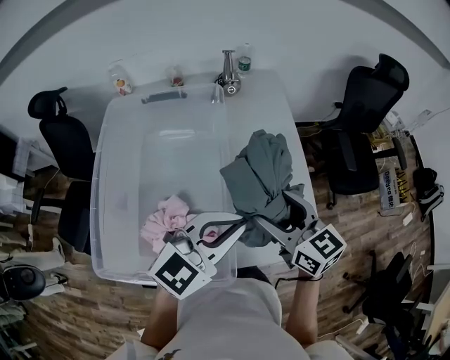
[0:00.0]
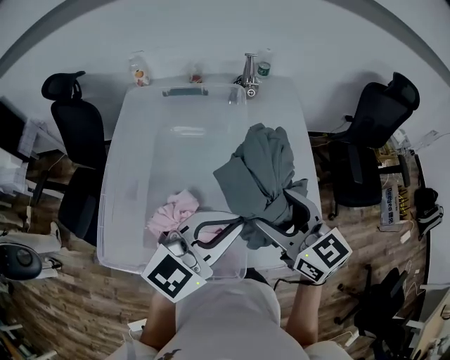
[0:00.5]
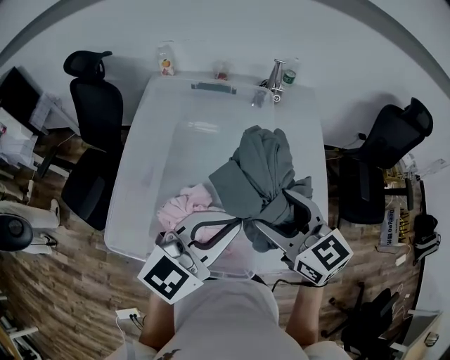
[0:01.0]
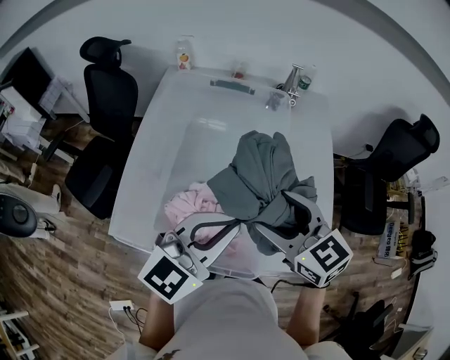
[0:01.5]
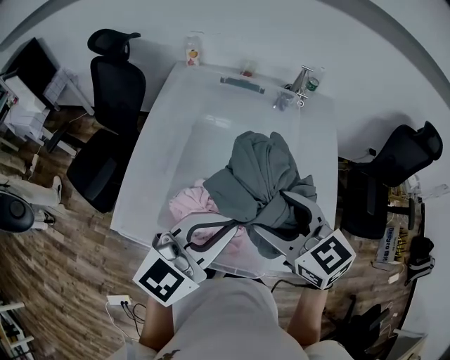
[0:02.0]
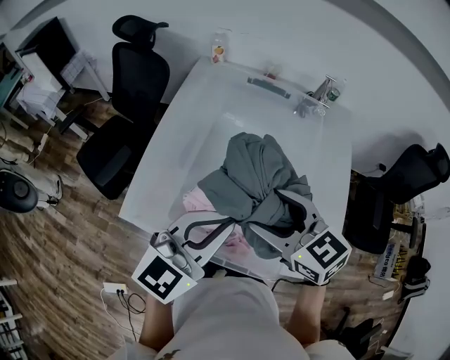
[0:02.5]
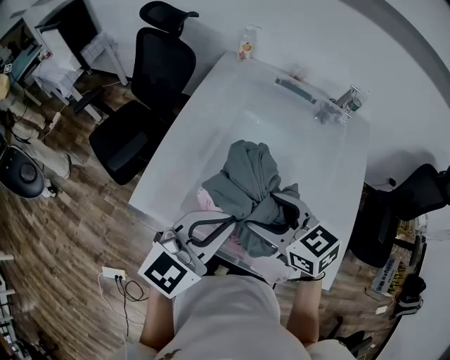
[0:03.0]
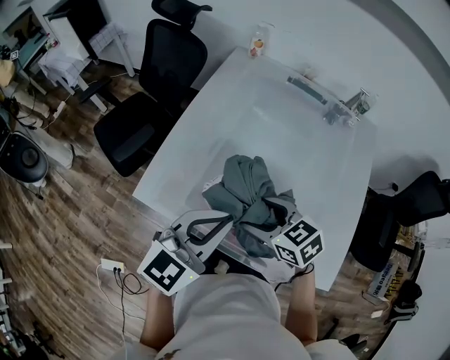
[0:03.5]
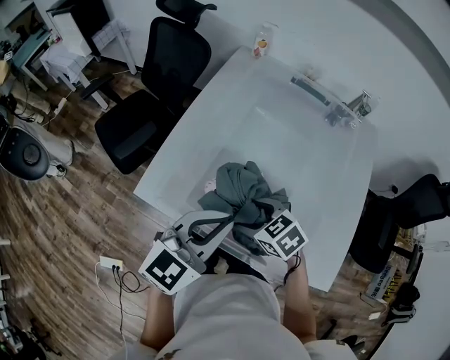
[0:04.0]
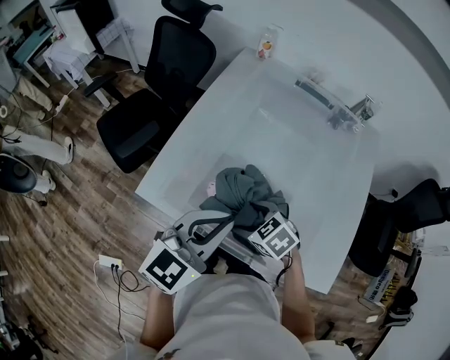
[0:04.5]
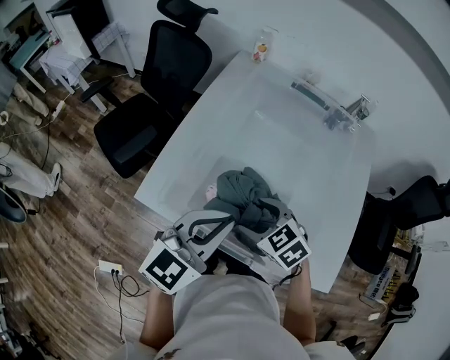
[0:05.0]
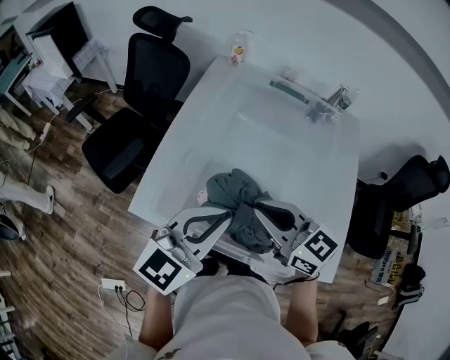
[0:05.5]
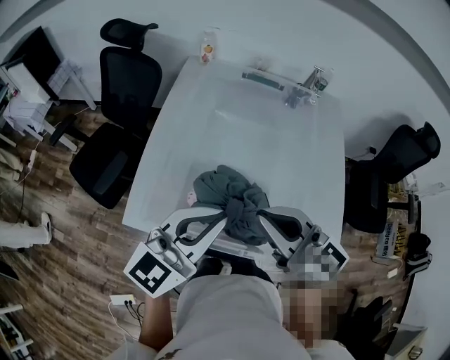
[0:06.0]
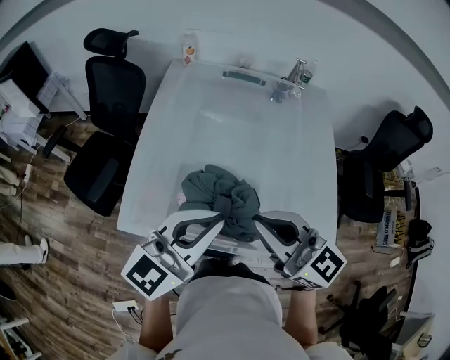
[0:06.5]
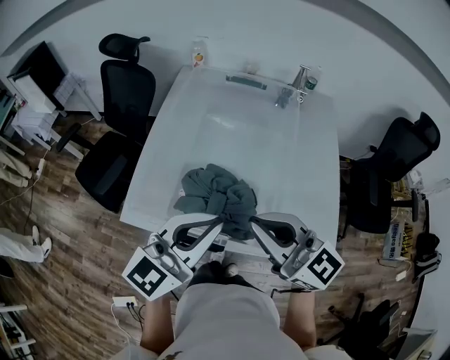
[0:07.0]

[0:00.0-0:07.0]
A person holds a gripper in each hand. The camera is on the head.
0:00.0 to 0:02.0: The grippers both shift to the left by approximately 15 cm. The right gripper turns by about 30 degrees. The left gripper turns by some 20 degrees.
0:02.0 to 0:03.5: The right gripper goes some 20 cm downward and to the left, and swivels some 30 degrees. Meanwhile the left gripper is displaced to the left and downward by roughly 15 cm.
0:03.5 to 0:05.0: The right gripper moves some 10 cm downward and comes back.
0:05.0 to 0:07.0: The left gripper travels to the right, upward and backward by about 10 cm. Meanwhile the right gripper shifts roughly 25 cm upward, to the right and backward, angles its fingers upward, by roughly 50 degrees, and closes.

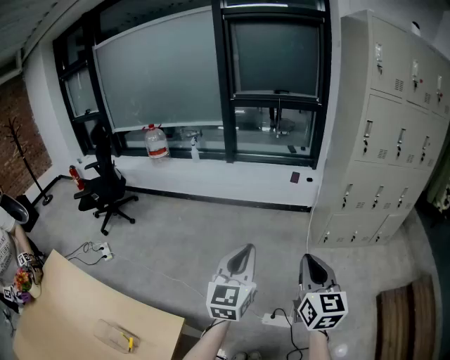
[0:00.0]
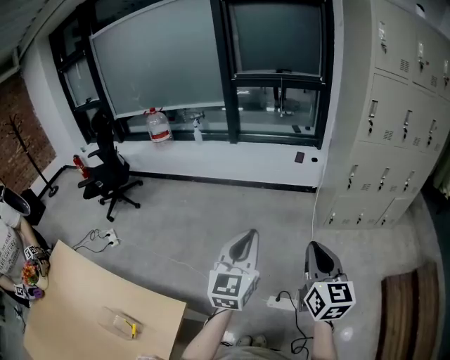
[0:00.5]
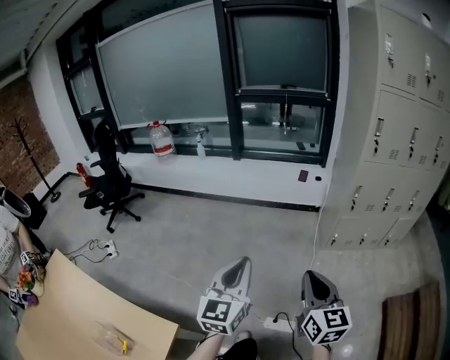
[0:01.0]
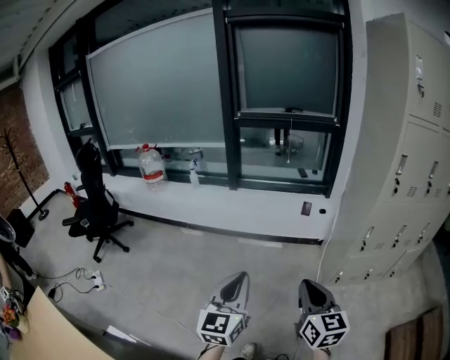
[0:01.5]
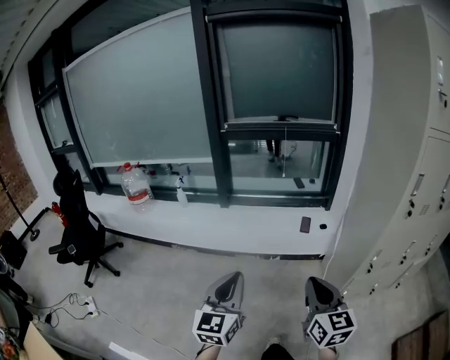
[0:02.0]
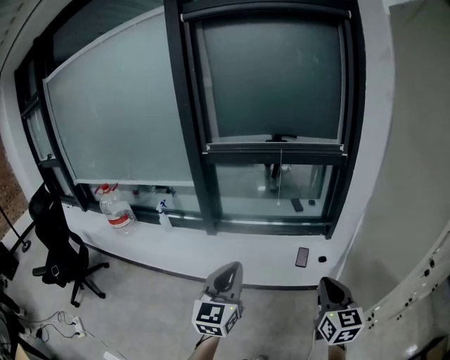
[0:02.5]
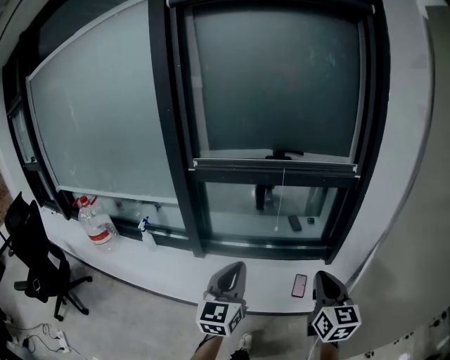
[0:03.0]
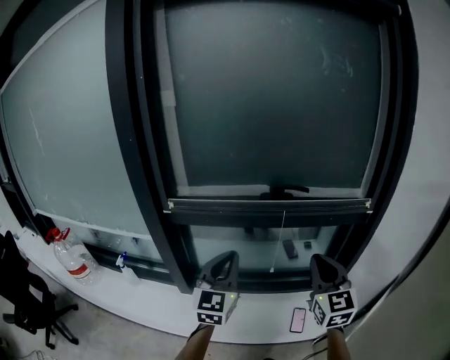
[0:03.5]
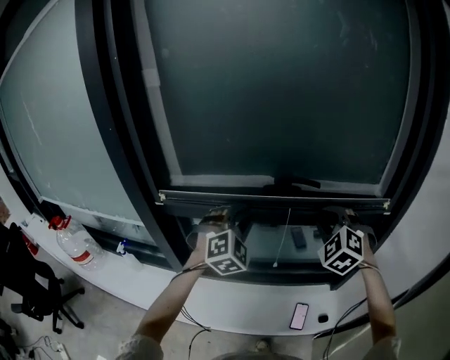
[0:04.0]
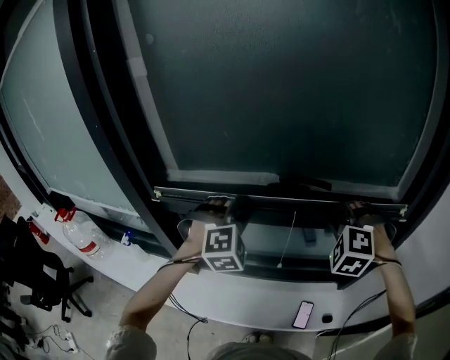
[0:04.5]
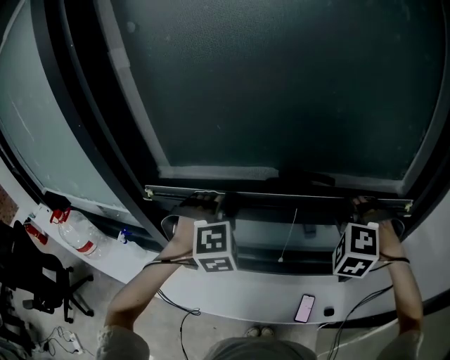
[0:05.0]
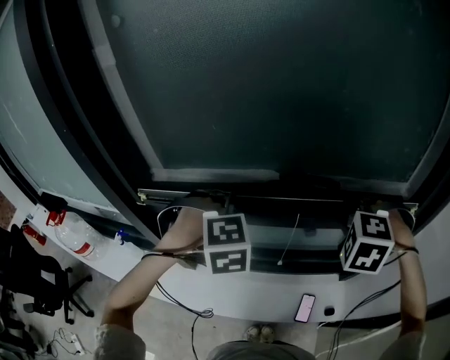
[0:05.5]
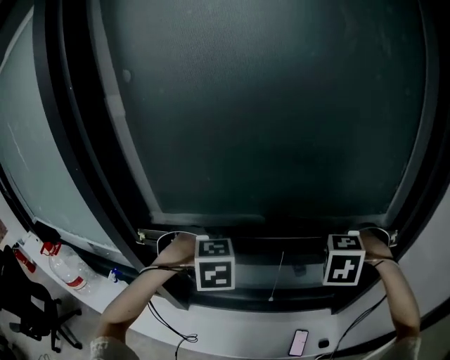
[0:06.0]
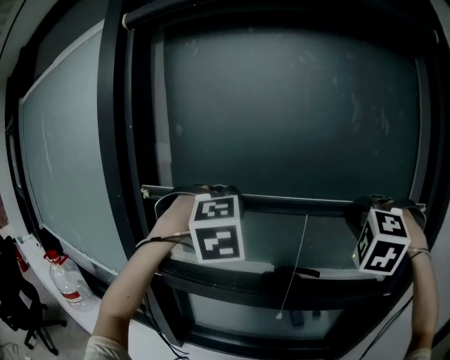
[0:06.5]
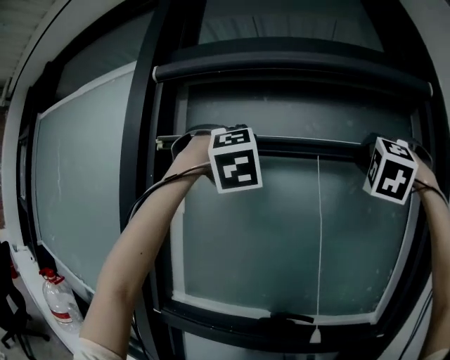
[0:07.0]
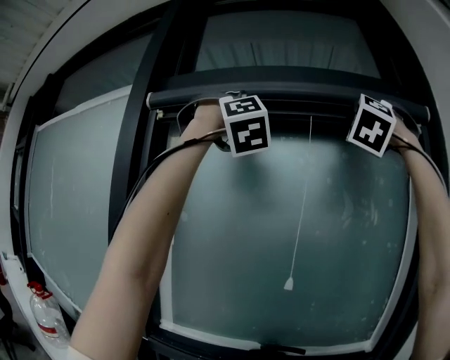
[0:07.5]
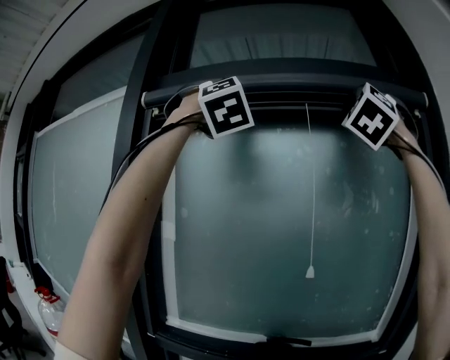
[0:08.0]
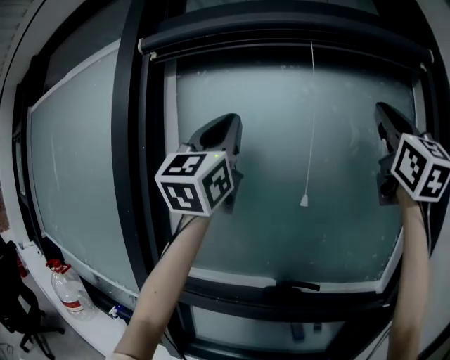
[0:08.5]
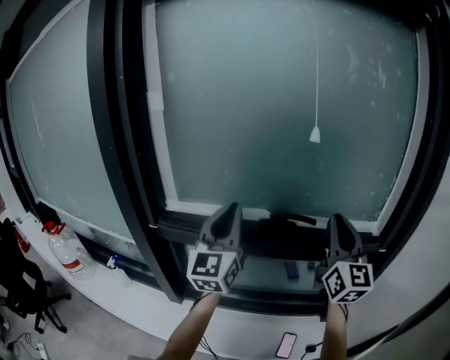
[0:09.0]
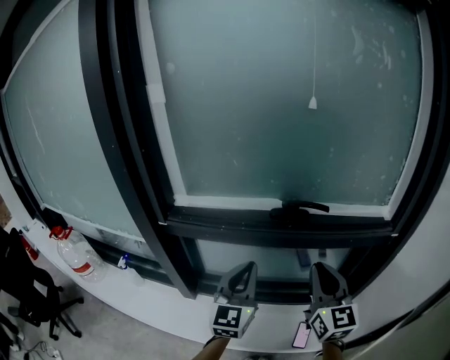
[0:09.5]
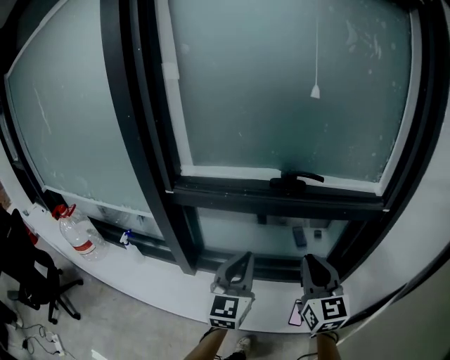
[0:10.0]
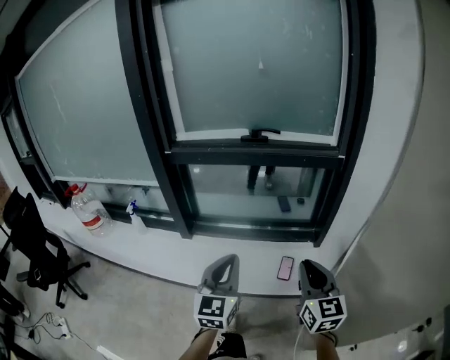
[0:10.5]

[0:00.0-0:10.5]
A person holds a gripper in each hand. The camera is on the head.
0:00.0 to 0:02.0: The pair of grippers is taken forward, approximately 40 cm.
0:02.0 to 0:04.0: The pair of grippers is taken forward, some 90 cm. The left gripper twists about 60 degrees clockwise, seen from behind, while the right gripper rotates around the line of its fingers by roughly 60 degrees, counterclockwise from behind.
0:04.0 to 0:06.5: The two grippers go approximately 25 cm upward. The right gripper turns by approximately 20 degrees, while the left gripper changes its angle by approximately 20 degrees.
0:06.5 to 0:08.5: The grippers both shift upward by some 30 cm. The right gripper tilts its fingers roughly 70 degrees upward, while the left gripper tilts its fingers about 70 degrees upward.
0:08.5 to 0:10.5: Both grippers move downward and backward, about 70 cm. The left gripper tilts its fingers roughly 40 degrees downward. The right gripper angles its fingers downward, by approximately 40 degrees.

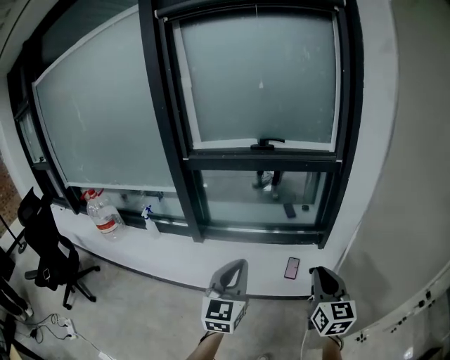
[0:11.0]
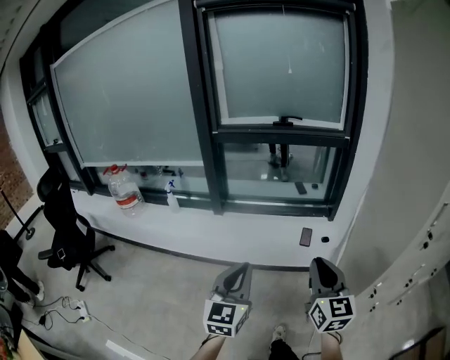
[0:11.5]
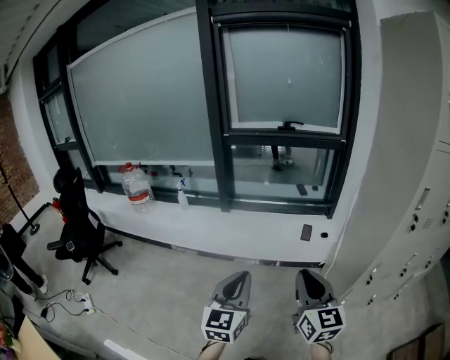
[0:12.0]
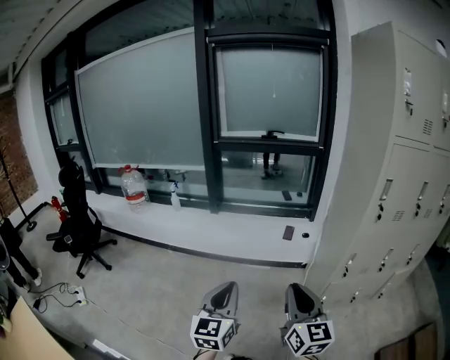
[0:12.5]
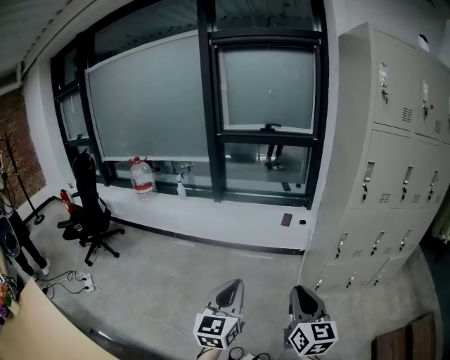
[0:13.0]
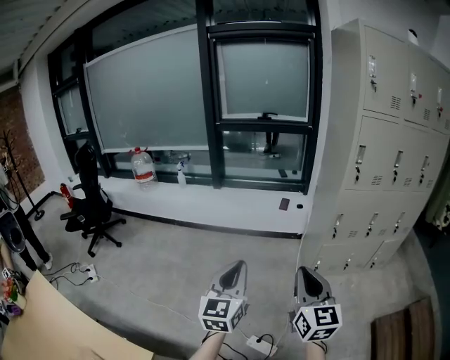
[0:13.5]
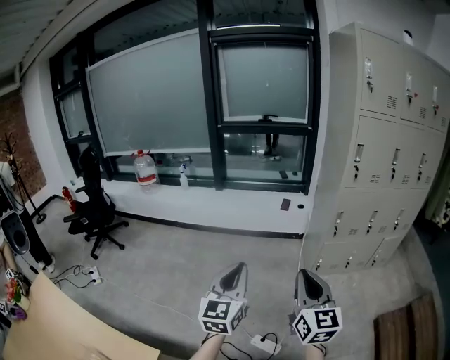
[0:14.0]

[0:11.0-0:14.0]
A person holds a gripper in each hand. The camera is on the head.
0:11.0 to 0:12.5: The two grippers travel together, backward, roughly 50 cm.
0:12.5 to 0:14.0: The grippers both shift backward by roughly 25 cm.

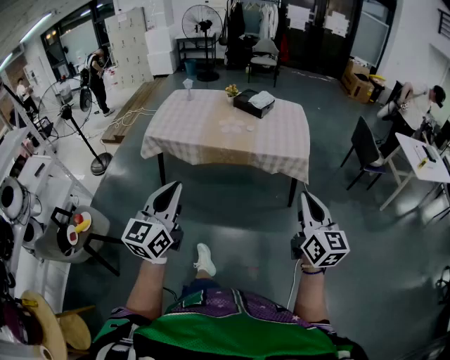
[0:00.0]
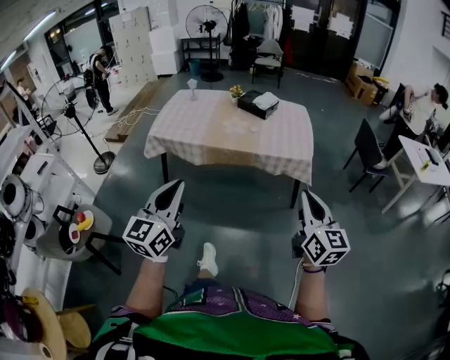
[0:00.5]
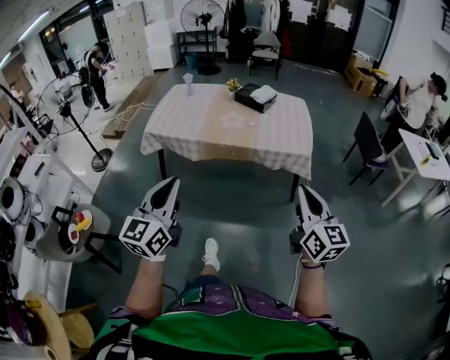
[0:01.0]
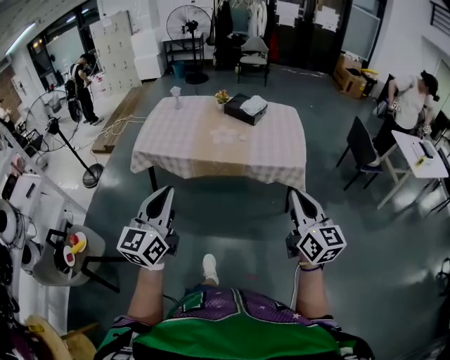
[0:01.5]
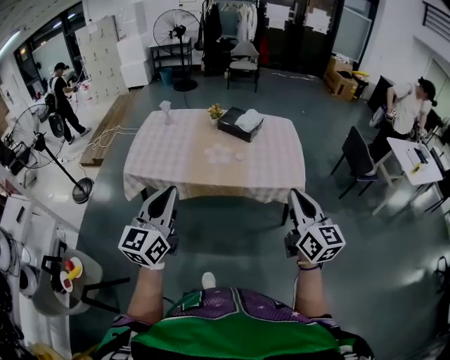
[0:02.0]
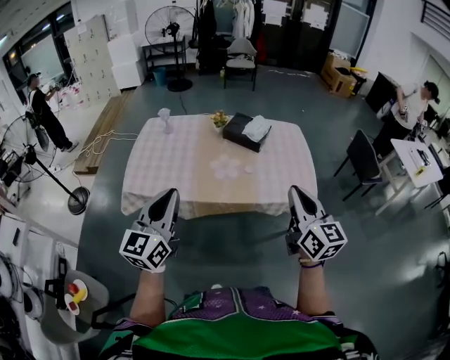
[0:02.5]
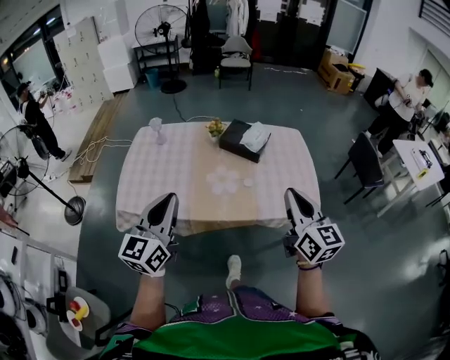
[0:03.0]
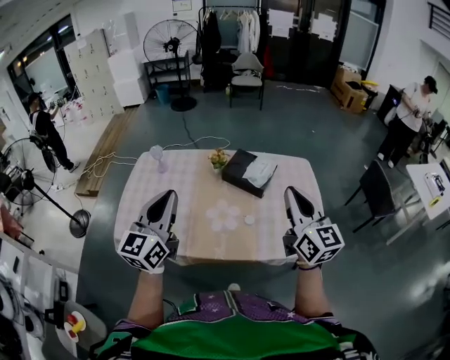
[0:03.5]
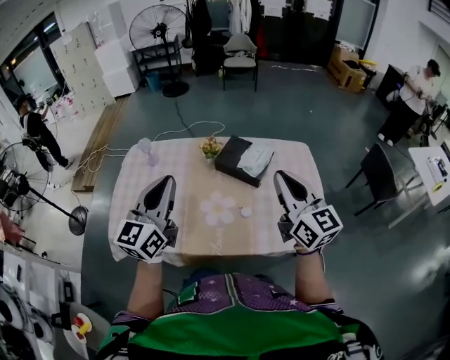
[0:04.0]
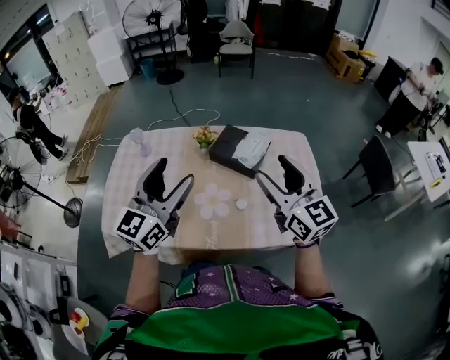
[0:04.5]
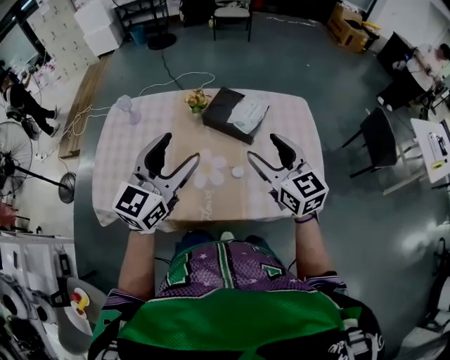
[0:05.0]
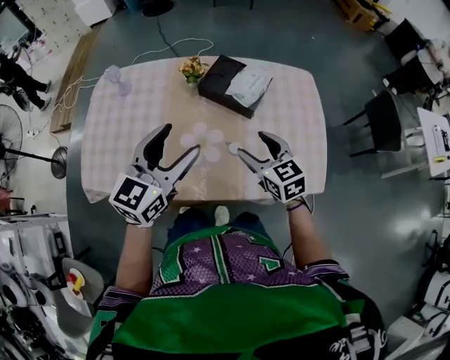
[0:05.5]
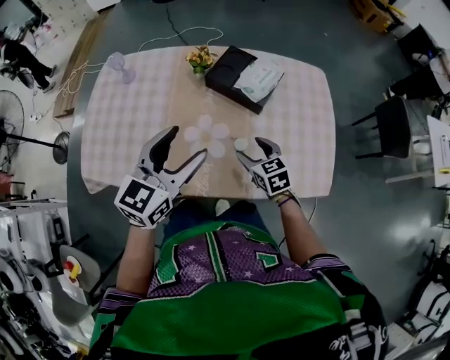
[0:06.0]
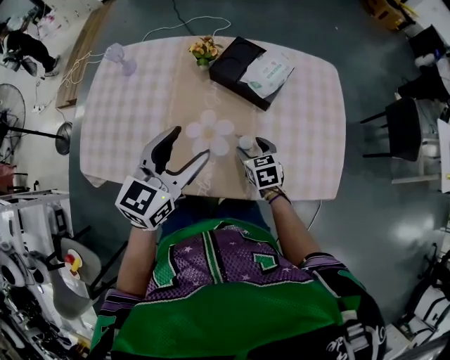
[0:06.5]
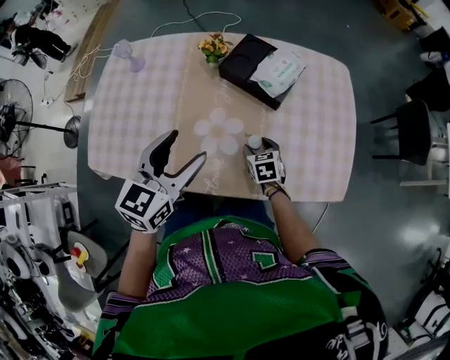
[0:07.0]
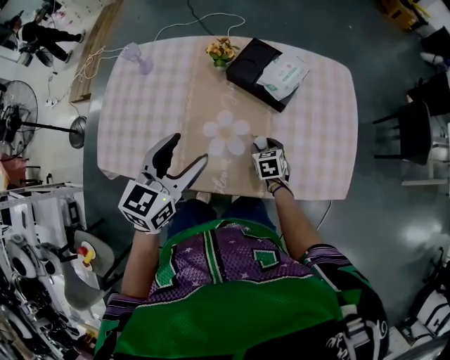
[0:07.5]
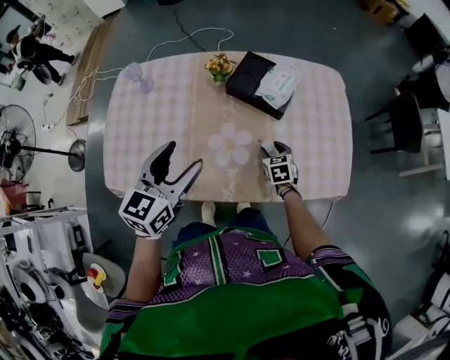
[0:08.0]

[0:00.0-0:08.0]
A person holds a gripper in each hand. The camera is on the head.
0:00.0 to 0:02.0: The two grippers go about 25 cm forward.
0:02.0 to 0:04.0: The two grippers travel together, forward, about 50 cm.
0:04.0 to 0:06.0: The right gripper moves downward, roughly 35 cm, tips its fingers downward by roughly 40 degrees, and opens up. Meanwhile the left gripper heads downward and to the right, covering about 20 cm, rotates approximately 20 degrees, and opens its fingers.
0:06.0 to 0:08.0: The left gripper moves to the left, some 10 cm. Meanwhile the right gripper heads downward, covering approximately 10 cm.
